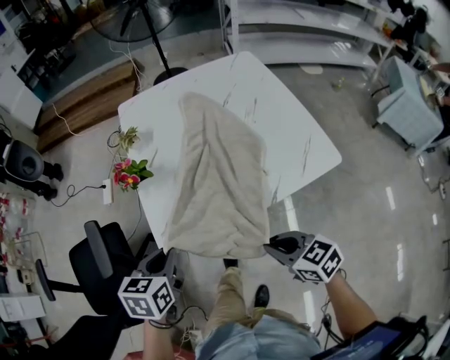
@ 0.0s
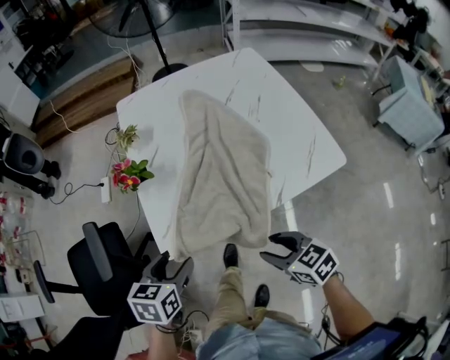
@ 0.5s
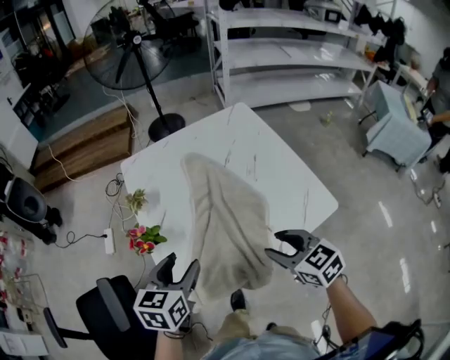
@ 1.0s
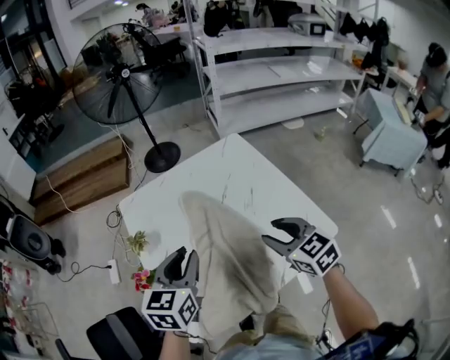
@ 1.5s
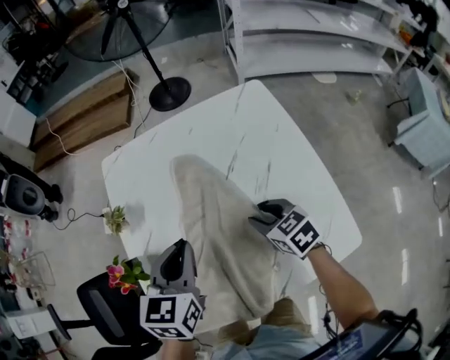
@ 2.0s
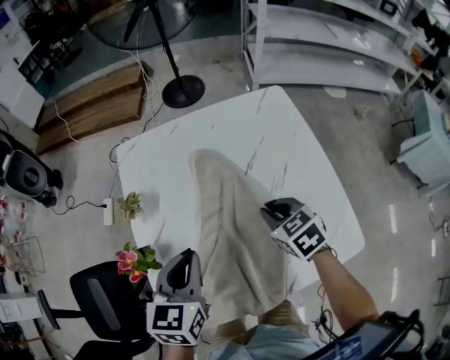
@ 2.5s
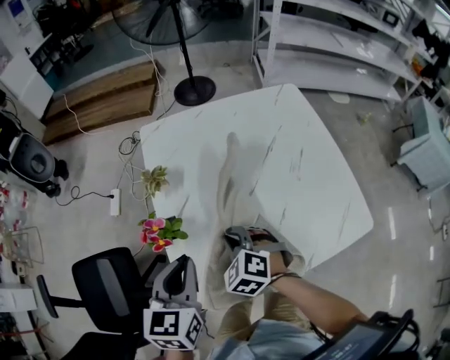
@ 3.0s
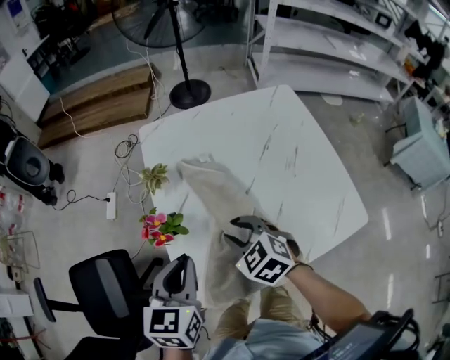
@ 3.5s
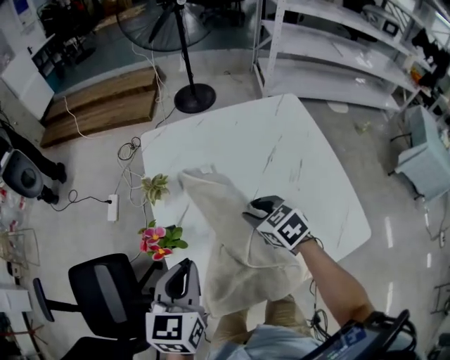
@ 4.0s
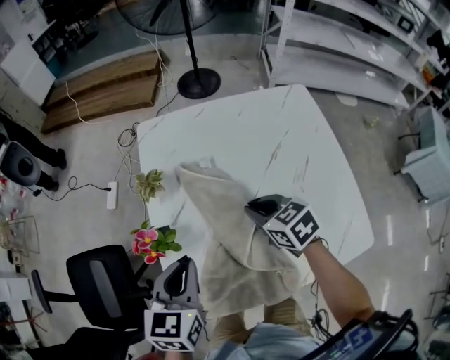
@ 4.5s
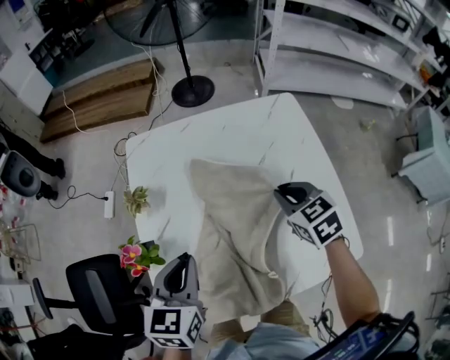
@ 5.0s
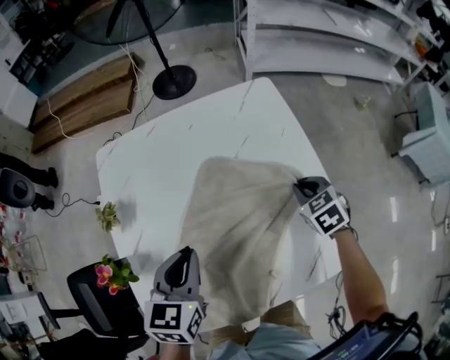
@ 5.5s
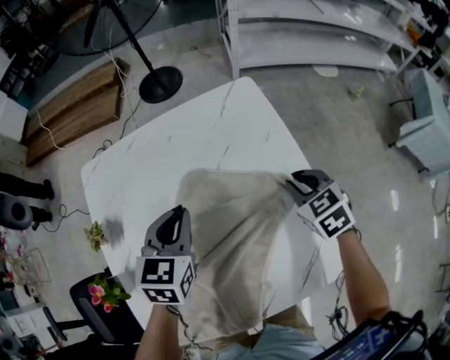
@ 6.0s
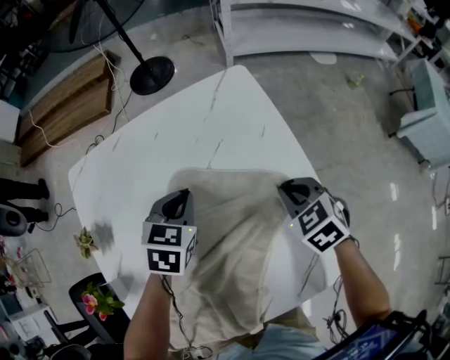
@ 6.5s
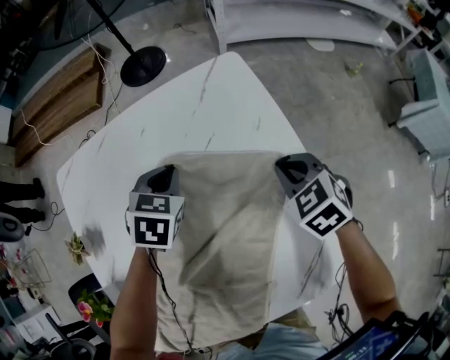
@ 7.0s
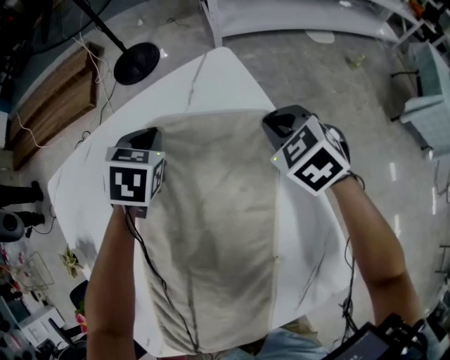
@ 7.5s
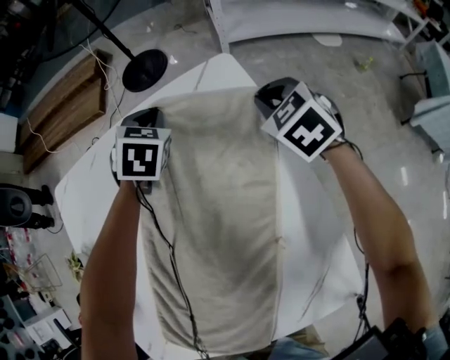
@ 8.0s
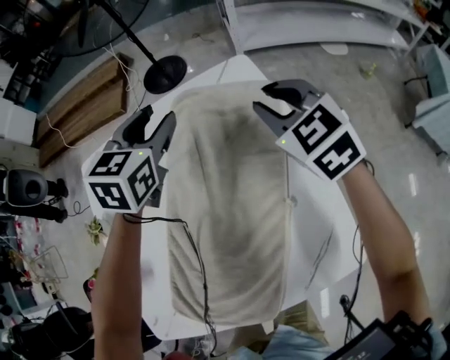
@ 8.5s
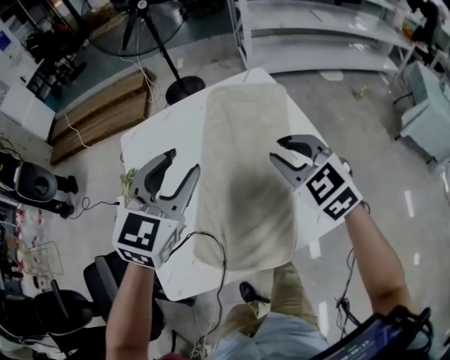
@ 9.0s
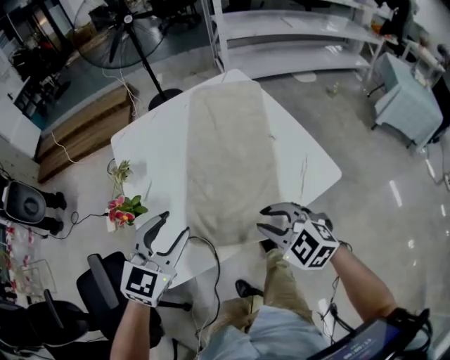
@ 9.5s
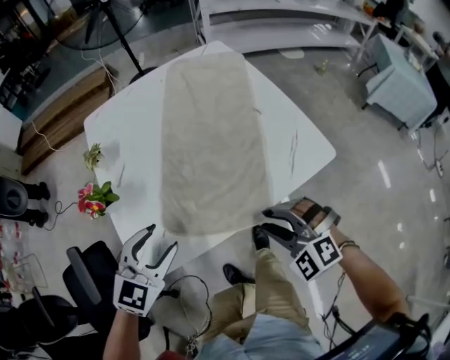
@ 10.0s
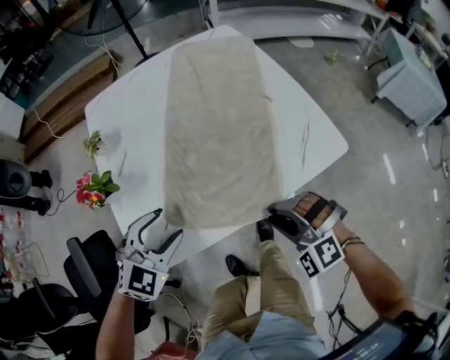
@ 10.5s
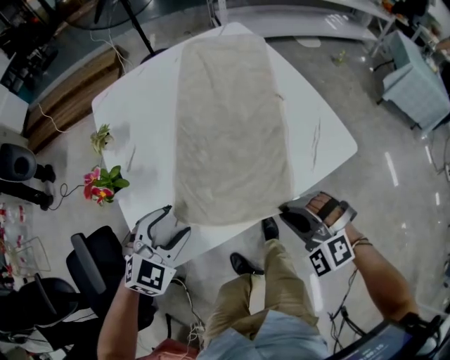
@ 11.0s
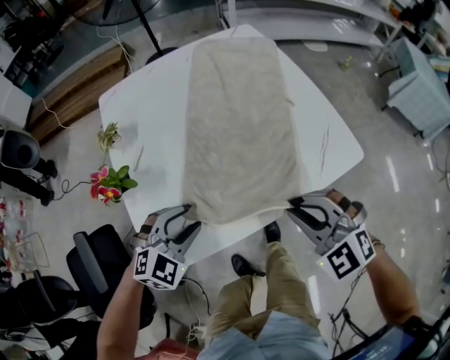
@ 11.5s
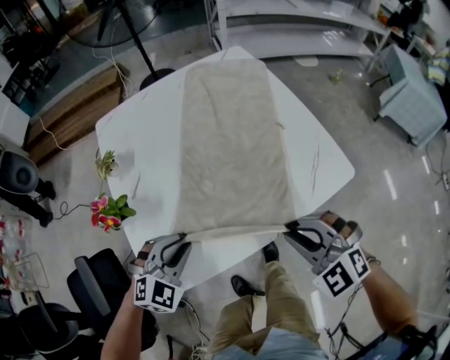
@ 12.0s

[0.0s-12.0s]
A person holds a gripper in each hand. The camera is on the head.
0.0s to 2.0s: The right gripper moves forward, about 35 cm, and opens, while the left gripper heads forward and to the right, covering roughly 30 cm, and opens, then closes again.
2.0s to 4.0s: The right gripper goes roughly 15 cm to the left, and closes, then opens again, while the left gripper moves to the left and backward, approximately 15 cm.
4.0s to 6.0s: The left gripper heads to the right and forward, covering some 30 cm. Meanwhile the right gripper shifts about 30 cm to the right.
6.0s to 8.0s: Both grippers move forward, approximately 25 cm. The left gripper changes its angle by some 30 degrees.
8.0s to 10.0s: The two grippers travel together, backward, some 60 cm. The left gripper swivels approximately 30 degrees, and opens. The right gripper swivels approximately 40 degrees, and opens.
10.0s to 12.0s: The right gripper moves roughly 5 cm, and closes. Meanwhile the left gripper shifts about 10 cm downward, changes its angle by approximately 20 degrees, and closes.

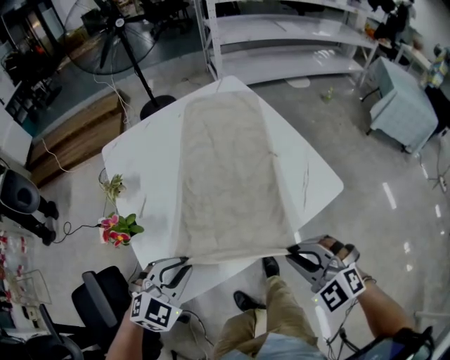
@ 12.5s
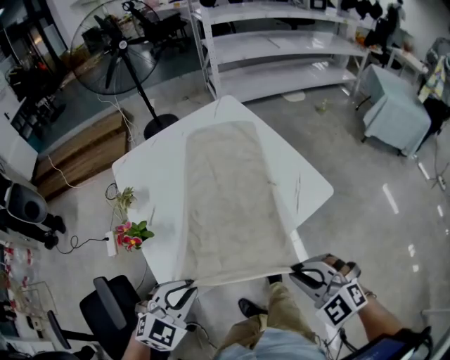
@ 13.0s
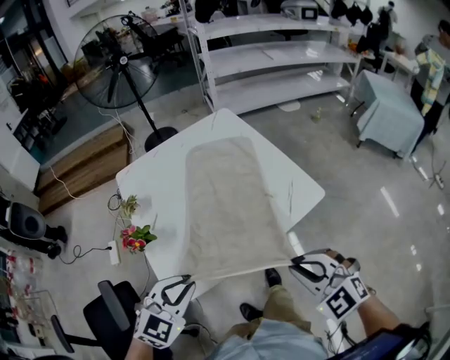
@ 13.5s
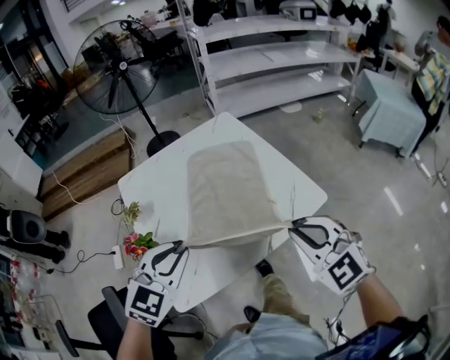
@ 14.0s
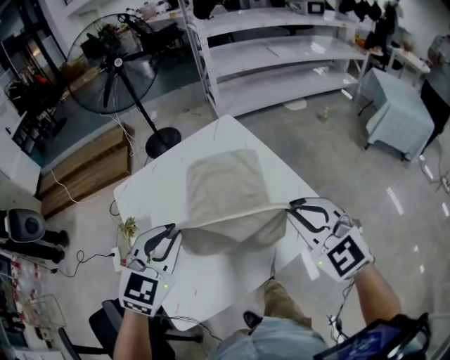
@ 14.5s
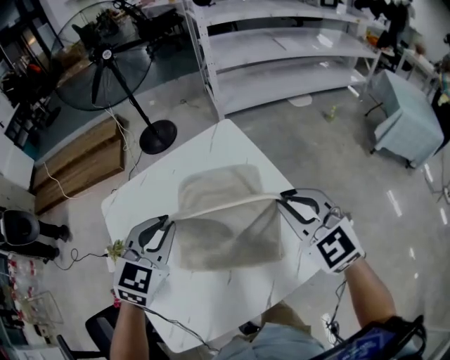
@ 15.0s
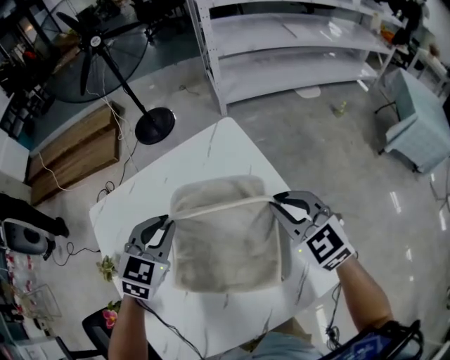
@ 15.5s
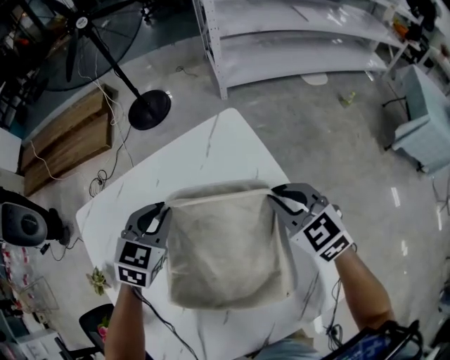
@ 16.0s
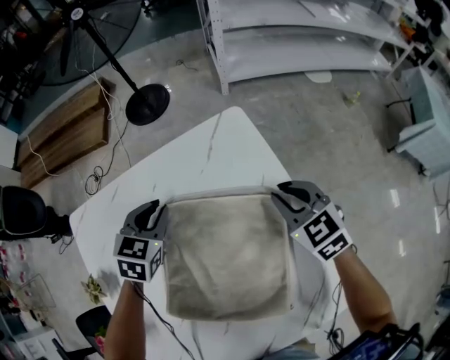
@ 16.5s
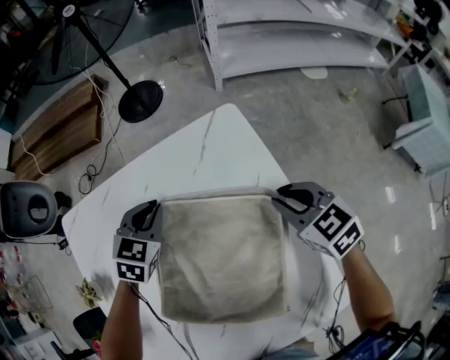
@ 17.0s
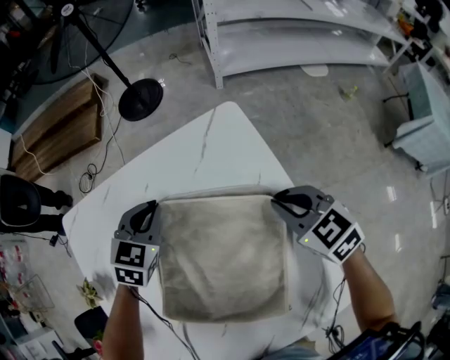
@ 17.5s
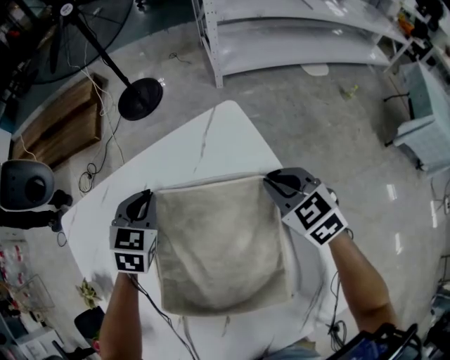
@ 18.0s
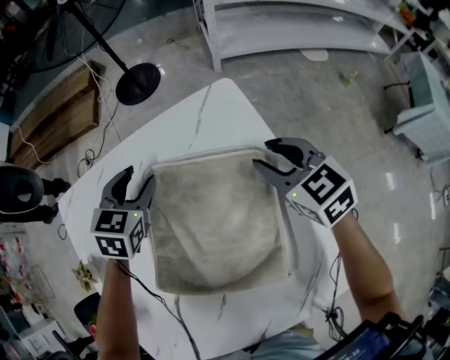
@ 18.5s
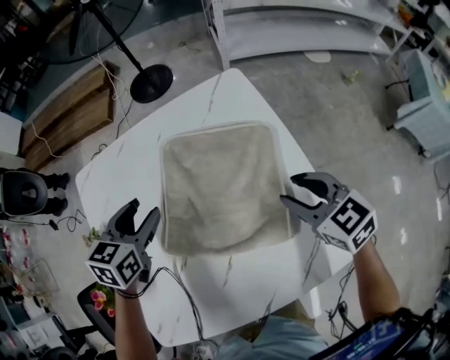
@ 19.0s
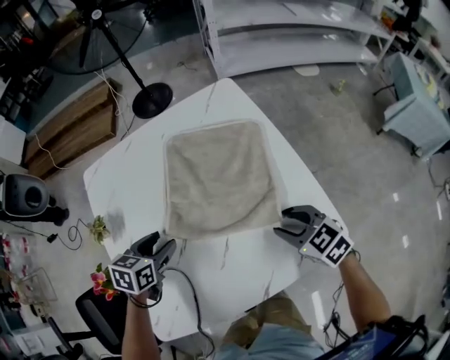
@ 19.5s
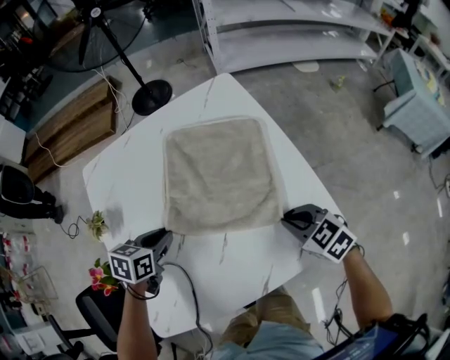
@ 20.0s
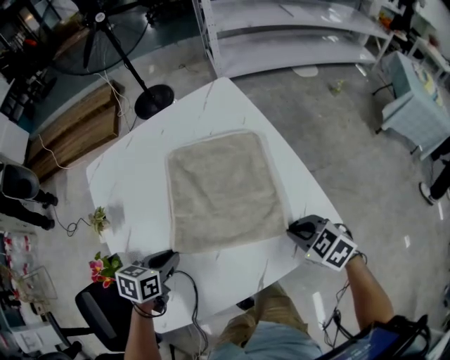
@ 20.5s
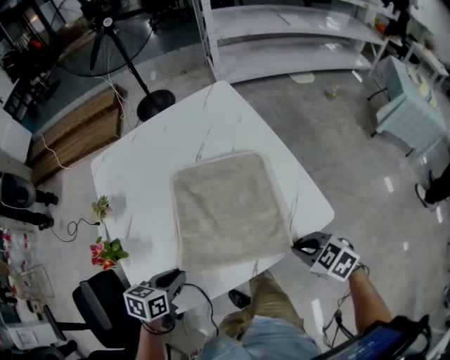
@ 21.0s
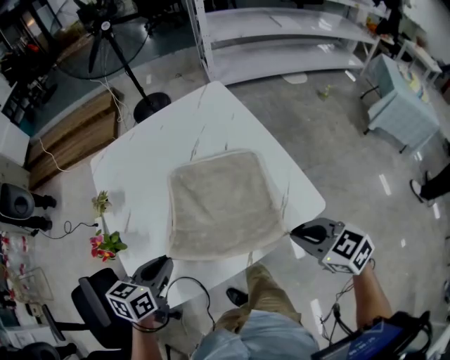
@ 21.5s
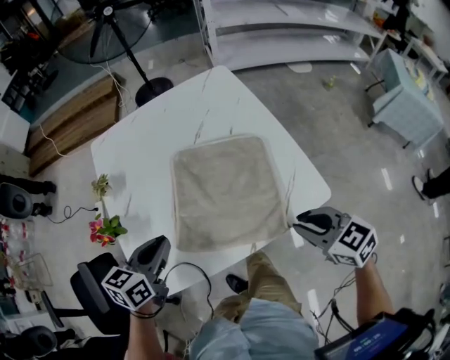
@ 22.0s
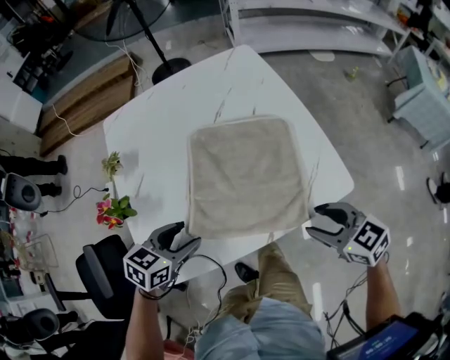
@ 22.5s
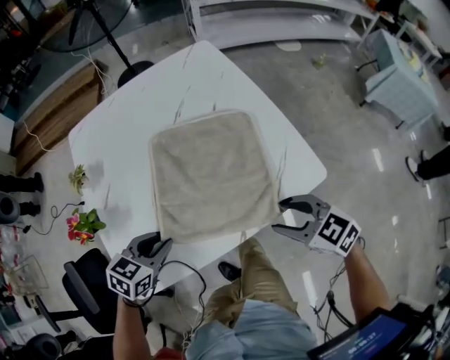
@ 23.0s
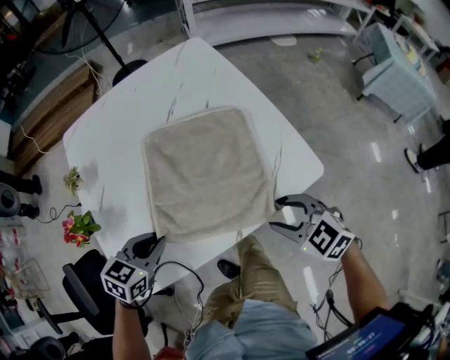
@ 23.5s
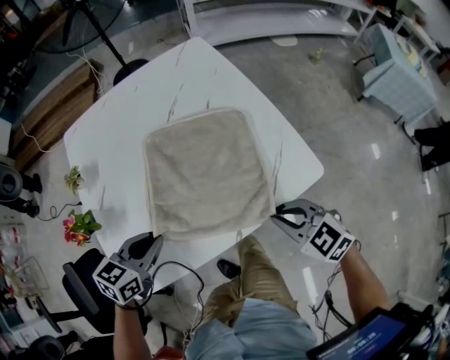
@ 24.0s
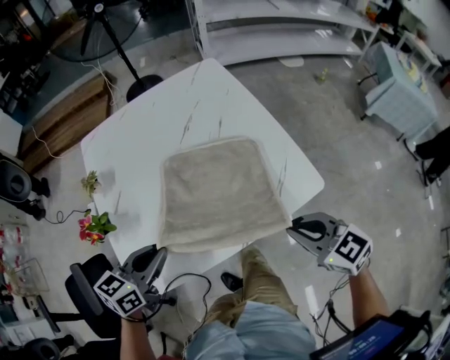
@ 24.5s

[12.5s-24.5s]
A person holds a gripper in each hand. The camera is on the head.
12.5s to 14.5s: Both grippers travel together upward and forward, some 25 cm. The right gripper rotates about 20 degrees.
14.5s to 16.5s: Both grippers move forward and downward, approximately 40 cm. The left gripper rotates roughly 30 degrees; the right gripper turns by roughly 30 degrees.
16.5s to 18.5s: The left gripper opens. Meanwhile the right gripper opens.
18.5s to 20.5s: The grippers both shift backward by about 35 cm. The right gripper rotates some 20 degrees, and closes up, while the left gripper rotates roughly 30 degrees, and closes.
20.5s to 22.5s: The right gripper heads backward and upward, covering about 10 cm, and opens its fingers. Meanwhile the left gripper heads backward, covering roughly 10 cm, goes upward and returns, approximately 10 cm each way, and opens.
22.5s to 24.5s: The left gripper shifts roughly 5 cm upward, and closes its fingers. The right gripper closes its fingers.

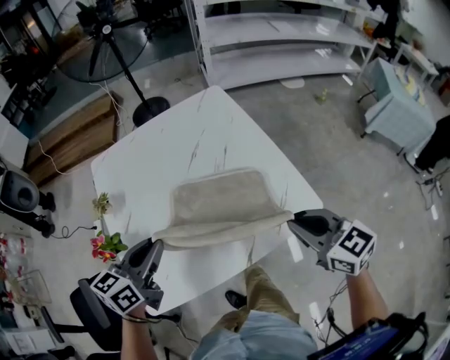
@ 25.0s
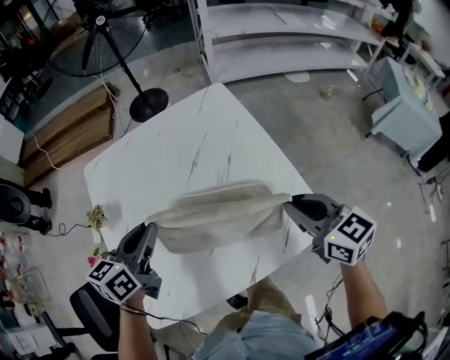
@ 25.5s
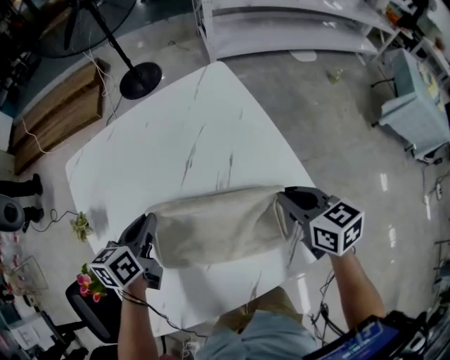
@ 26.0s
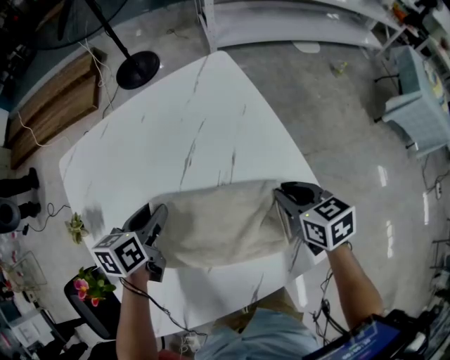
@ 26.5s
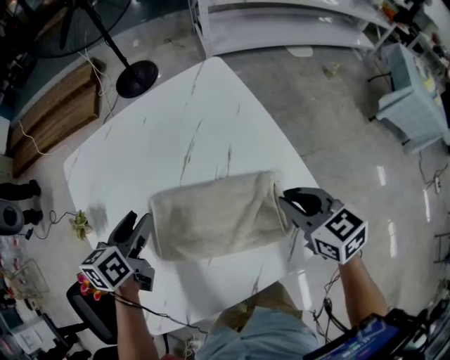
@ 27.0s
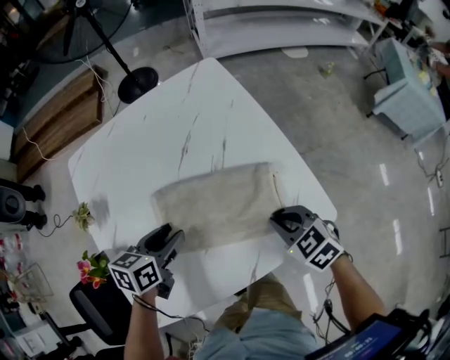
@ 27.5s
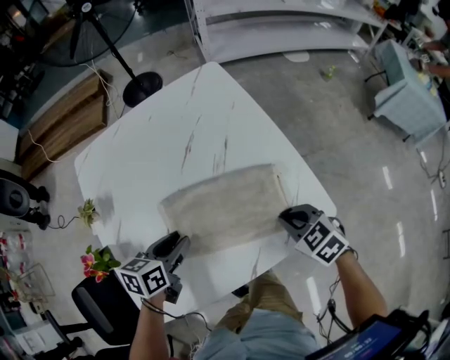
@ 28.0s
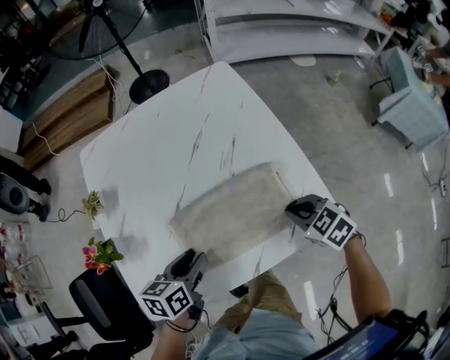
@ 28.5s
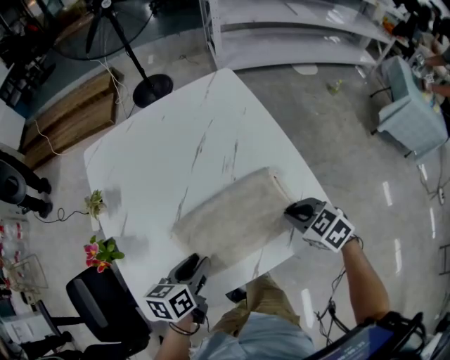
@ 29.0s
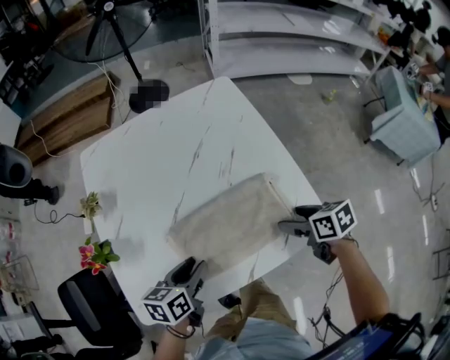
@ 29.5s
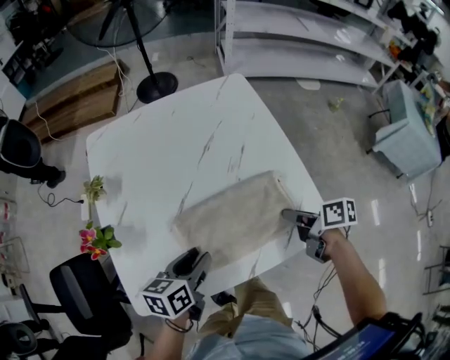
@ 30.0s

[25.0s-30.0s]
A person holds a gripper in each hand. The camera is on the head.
25.0s to 27.5s: Both grippers travel together downward and forward, roughly 15 cm. The right gripper changes its angle by roughly 30 degrees; the left gripper rotates approximately 20 degrees, and opens.
27.5s to 30.0s: The right gripper rolls clockwise, seen from behind, by about 60 degrees, and opens, then closes again. The left gripper goes roughly 10 cm backward.
